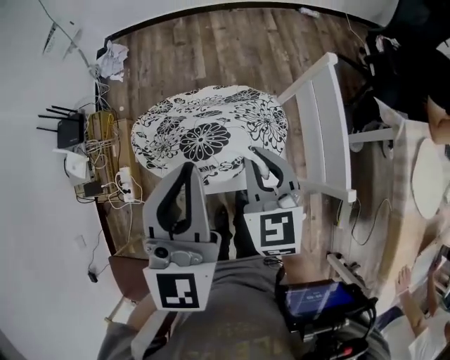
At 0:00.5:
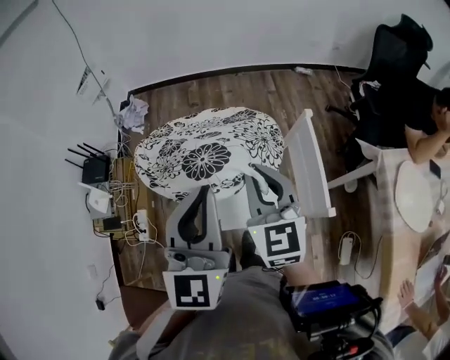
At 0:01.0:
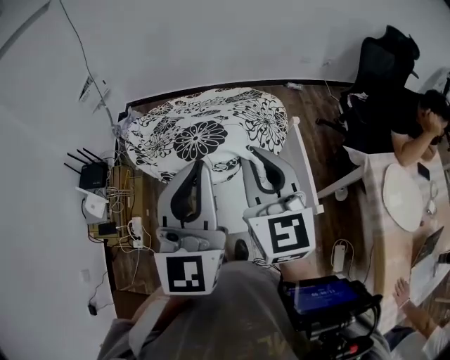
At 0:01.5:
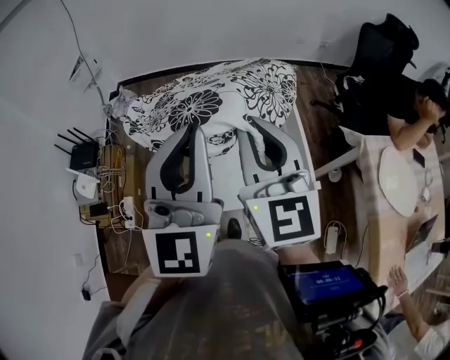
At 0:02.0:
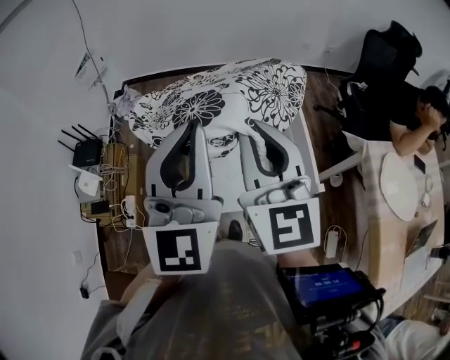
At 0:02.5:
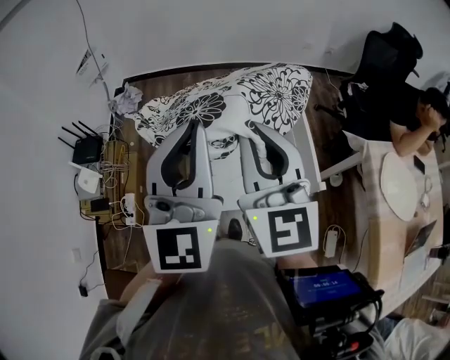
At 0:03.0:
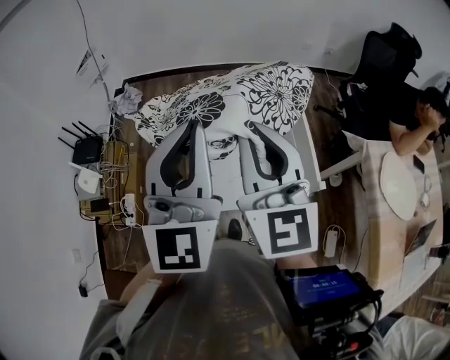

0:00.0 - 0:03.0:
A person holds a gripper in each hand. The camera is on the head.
0:00.0 - 0:01.5: The right gripper moves upward, about 25 cm, and changes its angle by about 30 degrees; the left gripper travels upward by about 15 cm.
0:01.5 - 0:03.0: The grippers make only small movements.

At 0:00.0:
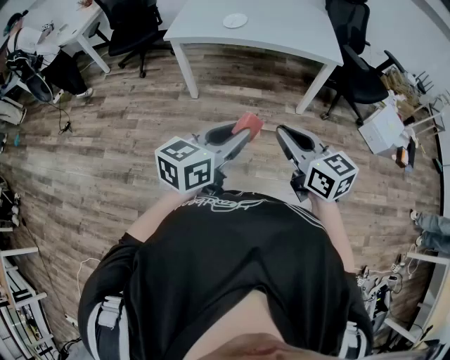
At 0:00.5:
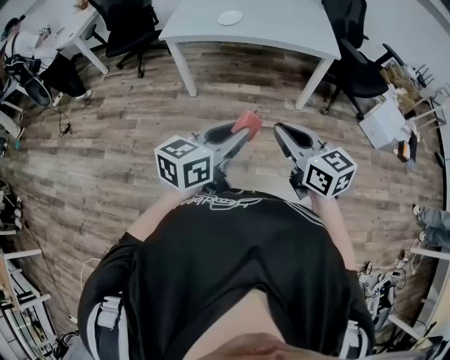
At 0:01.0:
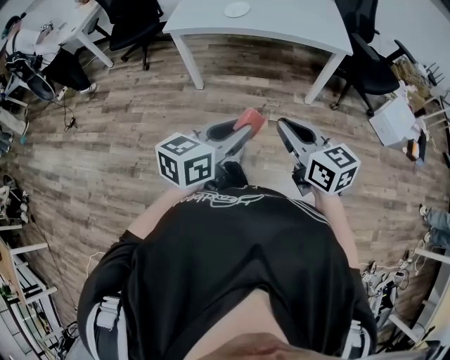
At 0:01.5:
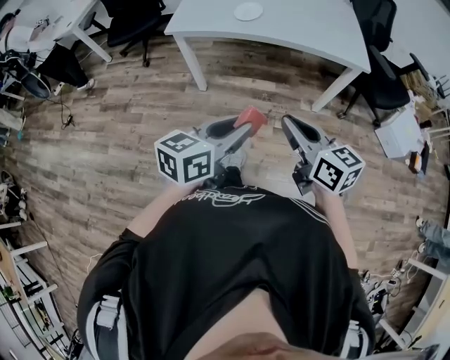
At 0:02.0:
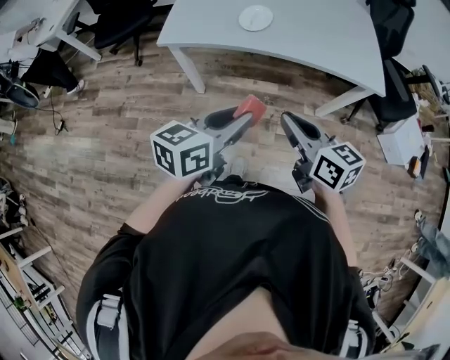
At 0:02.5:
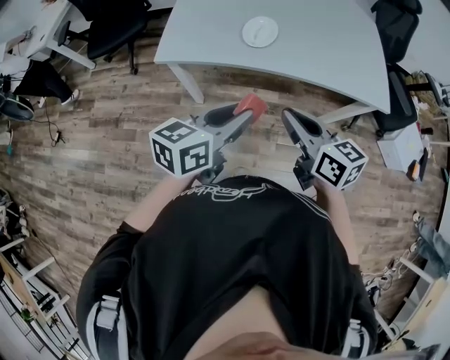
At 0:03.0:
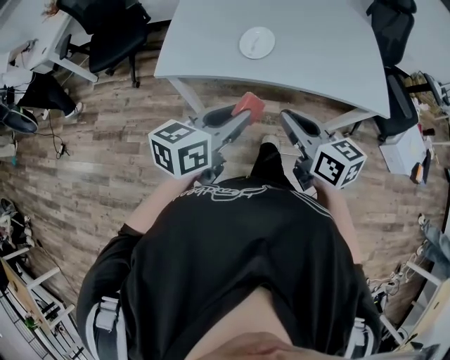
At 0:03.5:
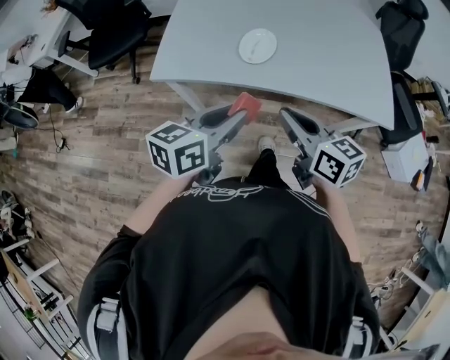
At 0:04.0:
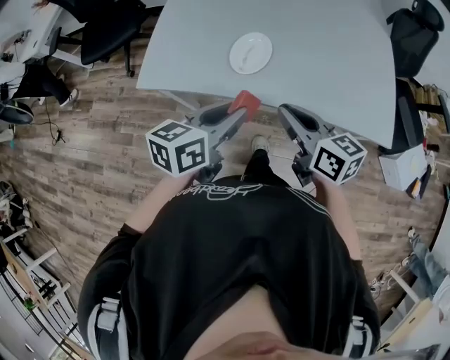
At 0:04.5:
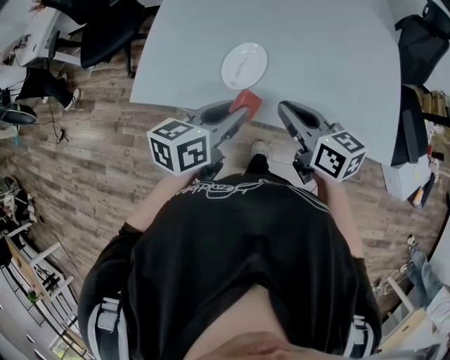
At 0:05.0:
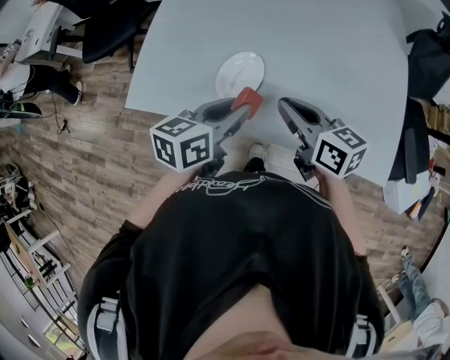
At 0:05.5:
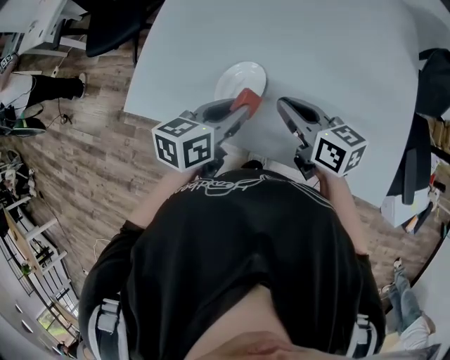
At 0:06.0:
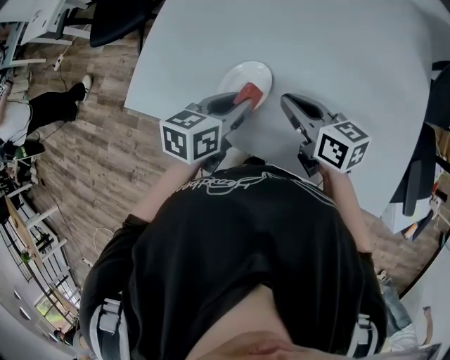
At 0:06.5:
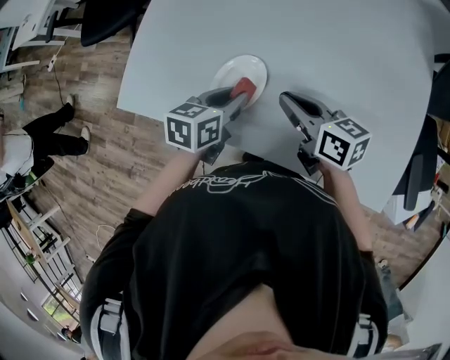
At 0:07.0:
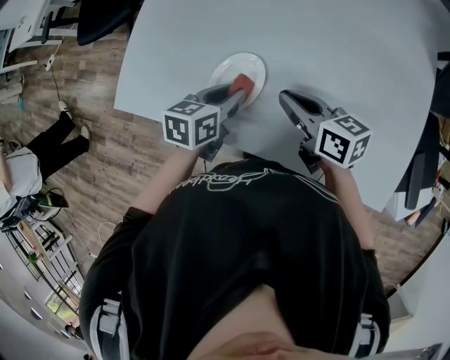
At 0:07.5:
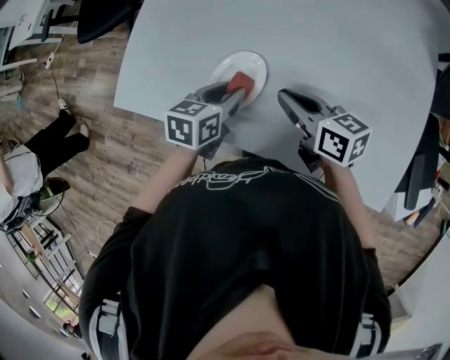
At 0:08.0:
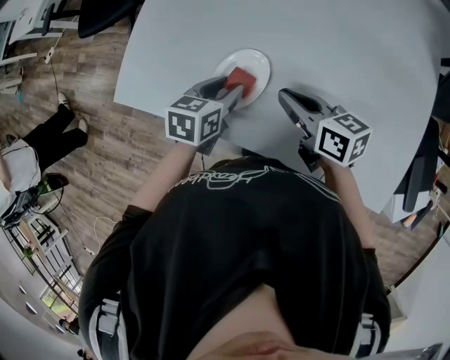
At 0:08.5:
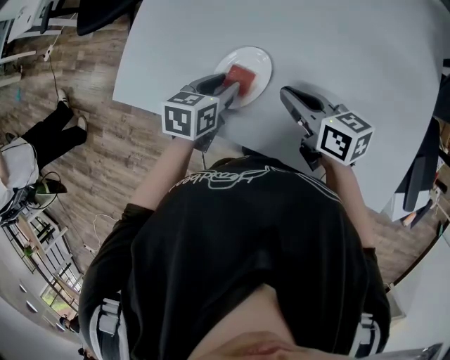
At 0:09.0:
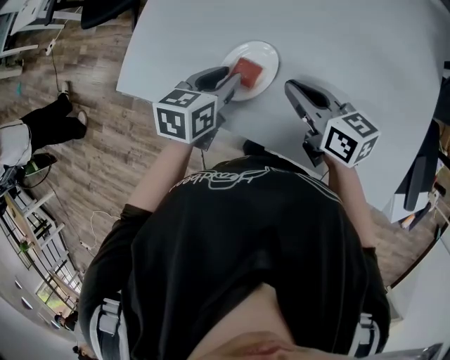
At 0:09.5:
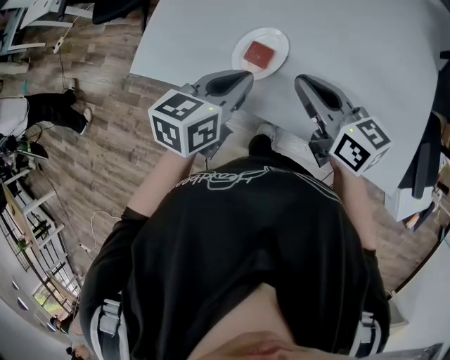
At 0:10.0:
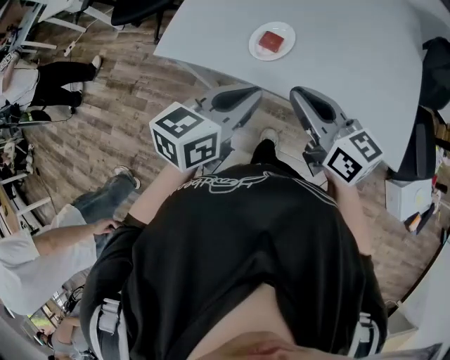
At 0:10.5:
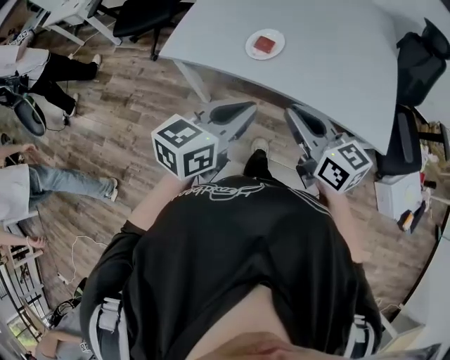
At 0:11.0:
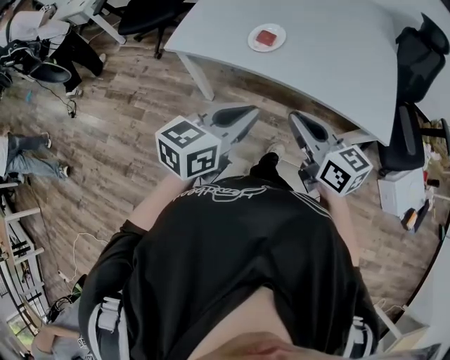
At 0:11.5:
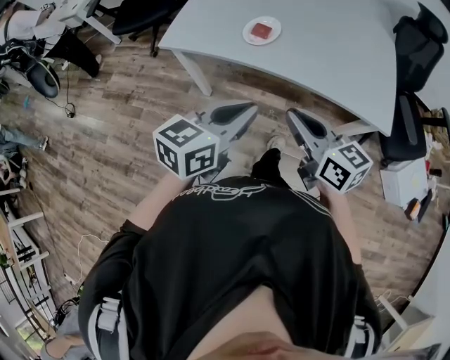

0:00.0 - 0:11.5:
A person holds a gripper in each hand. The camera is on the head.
0:00.0 - 0:02.0: Both grippers travel together forward, about 30 cm.
0:02.0 - 0:04.0: Both grippers travel together forward, roughly 25 cm.
0:04.0 - 0:06.0: The right gripper is displaced forward by about 20 cm. Meanwhile the left gripper heads forward and downward, covering about 20 cm.
0:06.0 - 0:07.5: The left gripper moves downward, roughly 5 cm.
0:07.5 - 0:09.5: The grippers both shift upward and backward by approximately 10 cm. The left gripper closes up.
0:09.5 - 0:11.5: The grippers both shift backward by some 30 cm.

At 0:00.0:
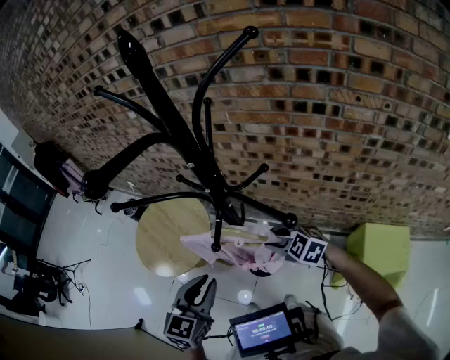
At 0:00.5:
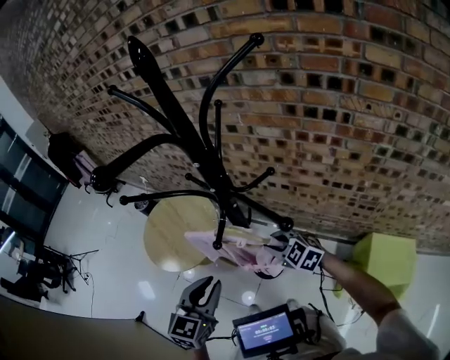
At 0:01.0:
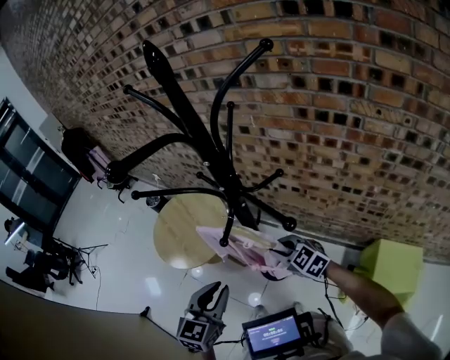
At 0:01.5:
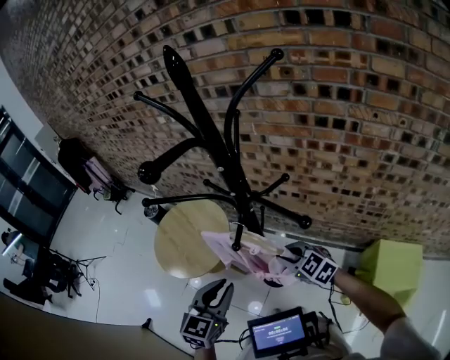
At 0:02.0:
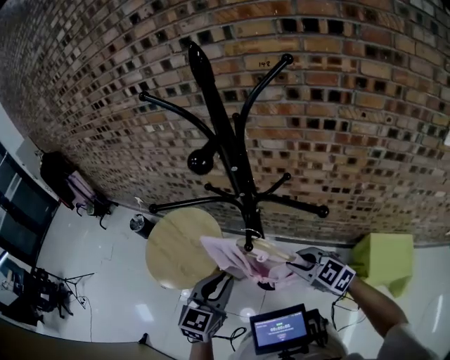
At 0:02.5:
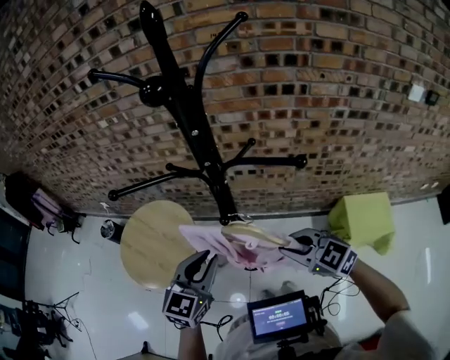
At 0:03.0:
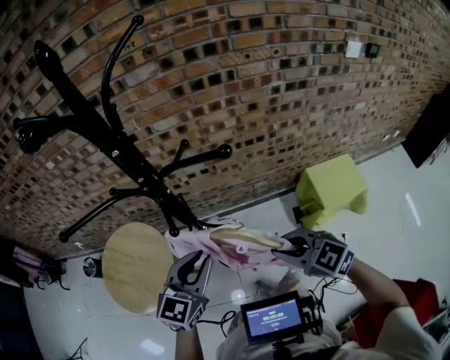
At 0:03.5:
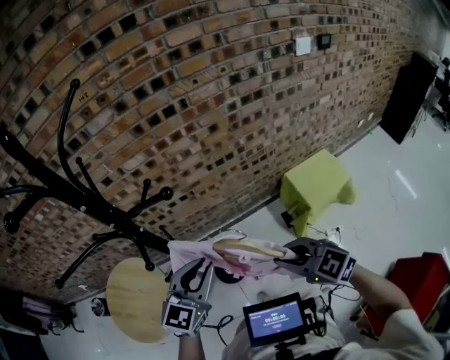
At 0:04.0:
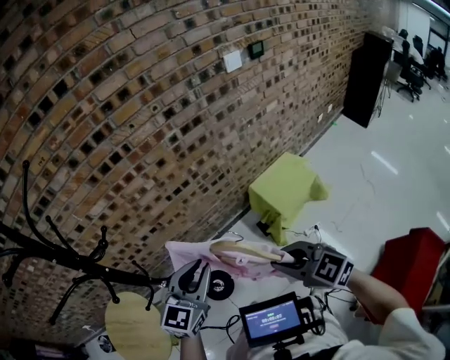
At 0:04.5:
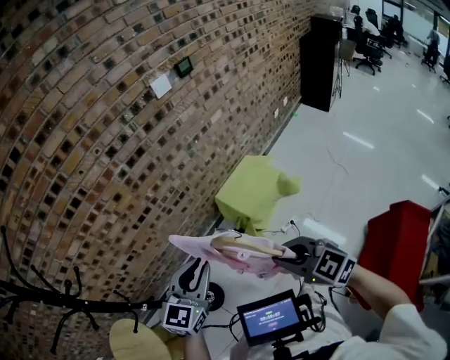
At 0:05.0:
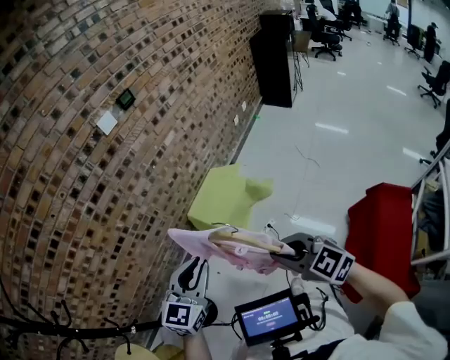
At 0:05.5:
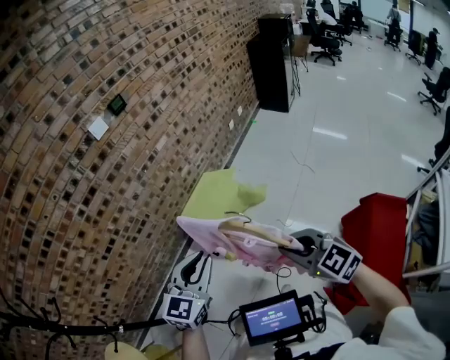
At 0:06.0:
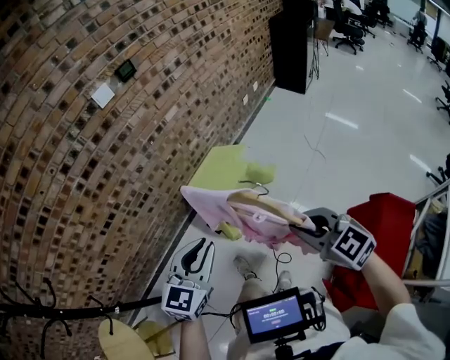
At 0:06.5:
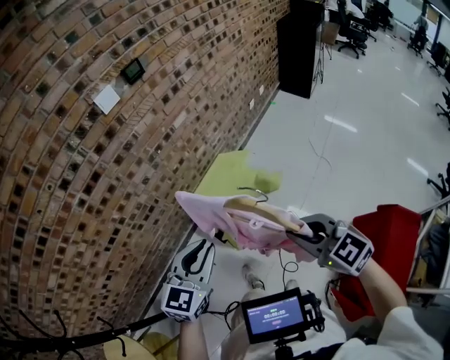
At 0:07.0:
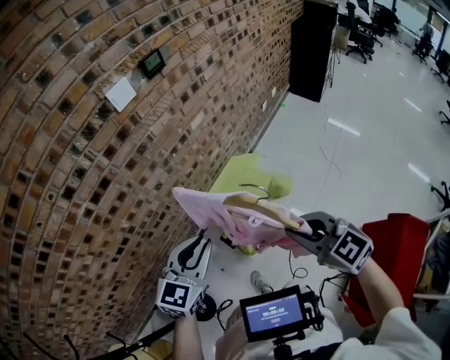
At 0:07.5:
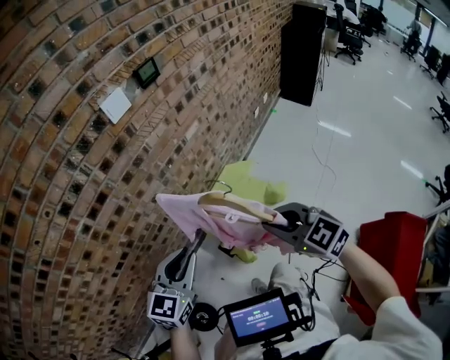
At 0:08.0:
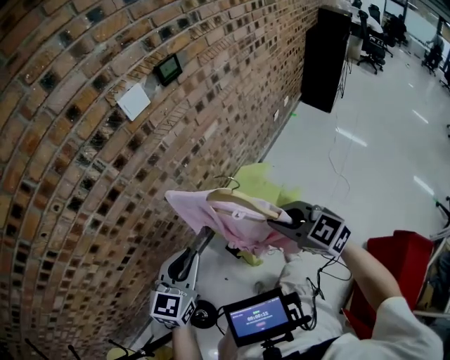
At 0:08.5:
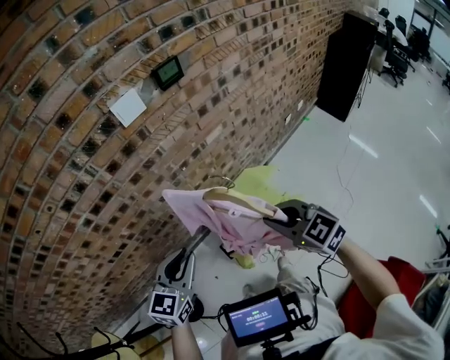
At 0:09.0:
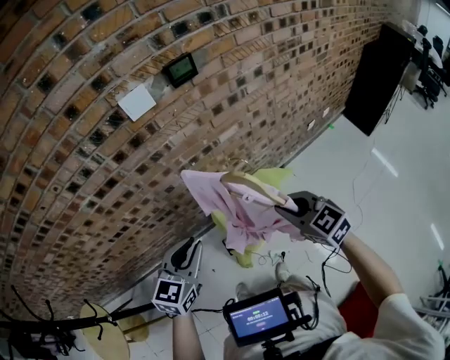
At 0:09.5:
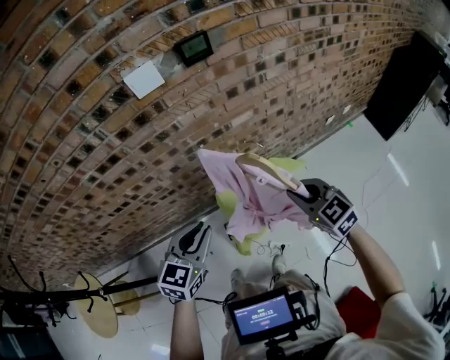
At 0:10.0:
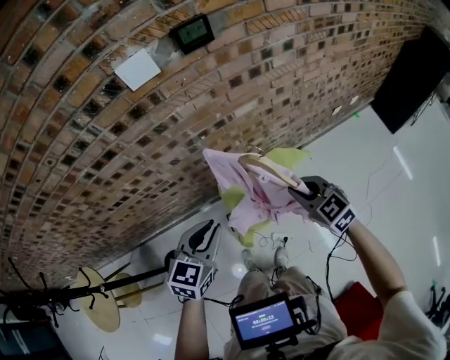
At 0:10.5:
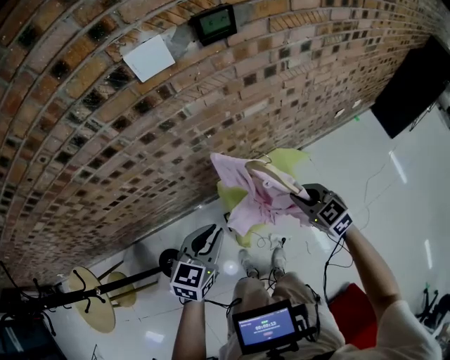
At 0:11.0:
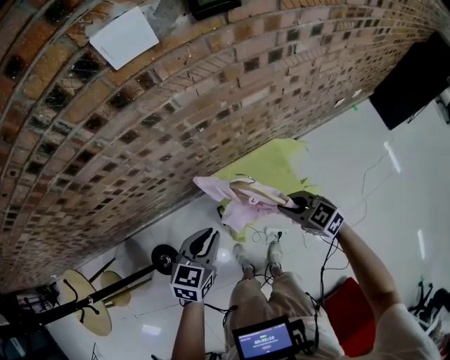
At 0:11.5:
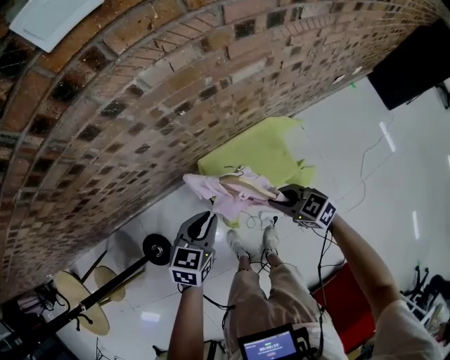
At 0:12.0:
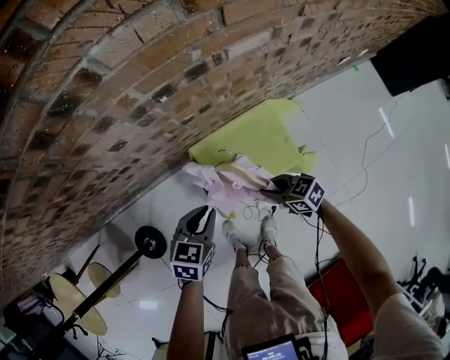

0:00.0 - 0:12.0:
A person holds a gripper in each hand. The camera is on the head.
0:00.0 - 0:02.0: The right gripper is displaced upward, backward and to the left by roughly 10 cm, and closes.
0:02.0 - 0:04.0: The right gripper ends up about 40 cm from where it was, and rotates about 50 degrees. Meanwhile the left gripper shifts by approximately 35 cm, and turns by roughly 50 degrees.
0:04.0 - 0:06.0: Both grippers are carried approximately 50 cm. The right gripper rotates some 30 degrees.
0:06.0 - 0:08.0: The pair of grippers is taken forward and to the left, approximately 50 cm.
0:08.0 - 0:10.0: The right gripper goes some 35 cm to the right, forward and downward. Meanwhile the left gripper heads to the right and forward, covering roughly 25 cm, and rotates some 20 degrees.
0:10.0 - 0:12.0: The right gripper heads downward, covering approximately 50 cm, and swivels some 40 degrees. The left gripper moves downward and forward, about 50 cm, and swivels roughly 20 degrees.
